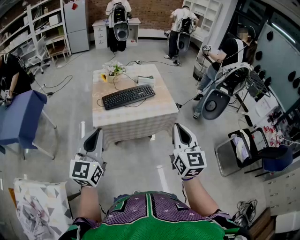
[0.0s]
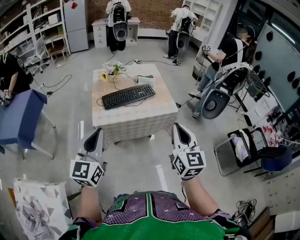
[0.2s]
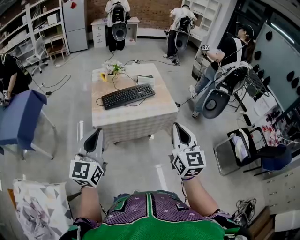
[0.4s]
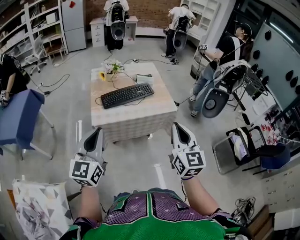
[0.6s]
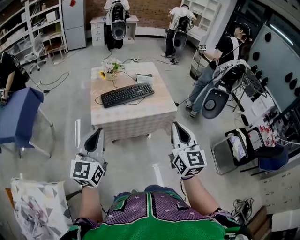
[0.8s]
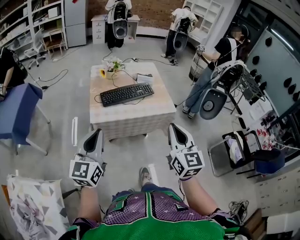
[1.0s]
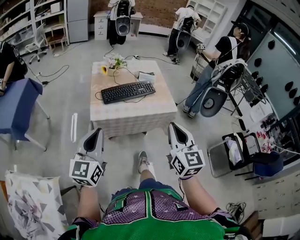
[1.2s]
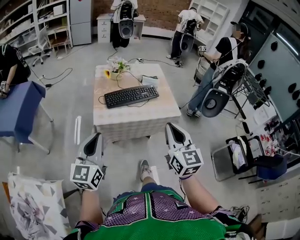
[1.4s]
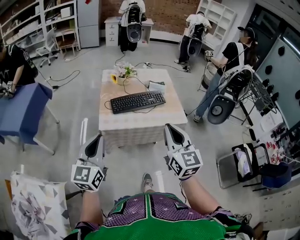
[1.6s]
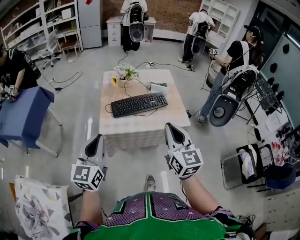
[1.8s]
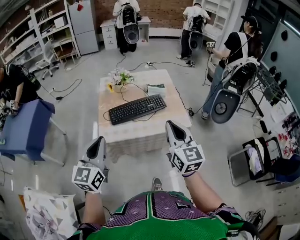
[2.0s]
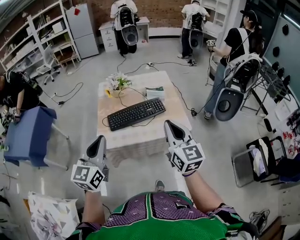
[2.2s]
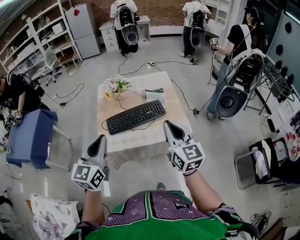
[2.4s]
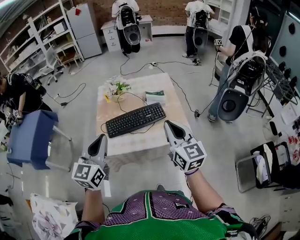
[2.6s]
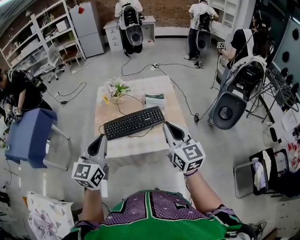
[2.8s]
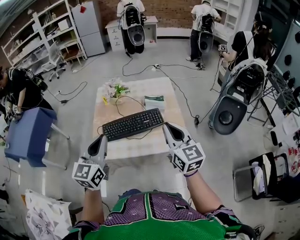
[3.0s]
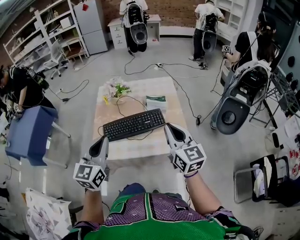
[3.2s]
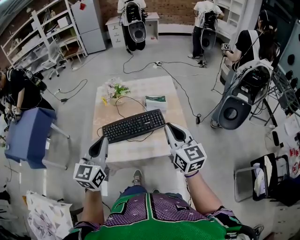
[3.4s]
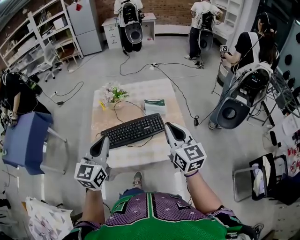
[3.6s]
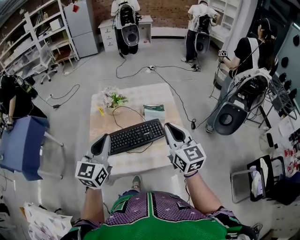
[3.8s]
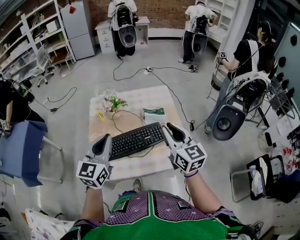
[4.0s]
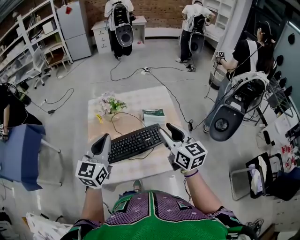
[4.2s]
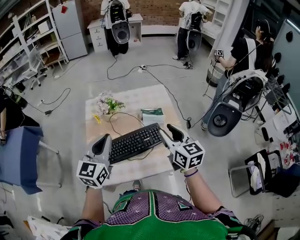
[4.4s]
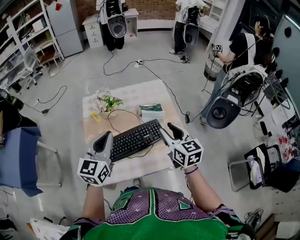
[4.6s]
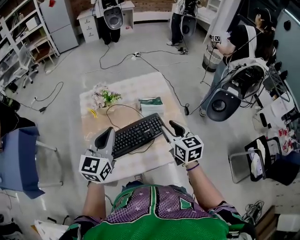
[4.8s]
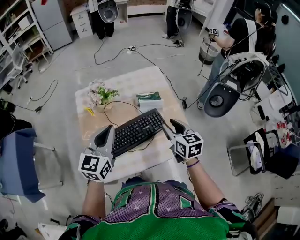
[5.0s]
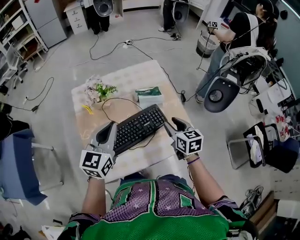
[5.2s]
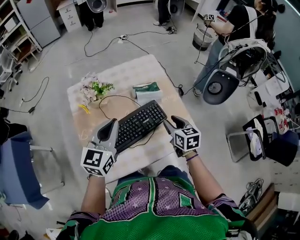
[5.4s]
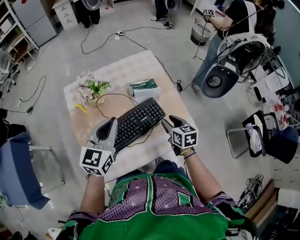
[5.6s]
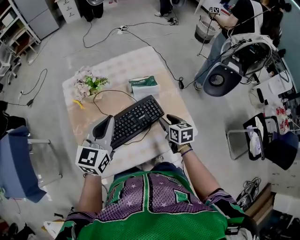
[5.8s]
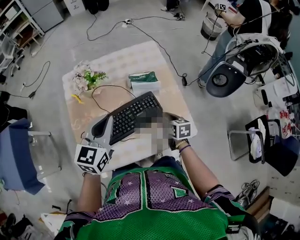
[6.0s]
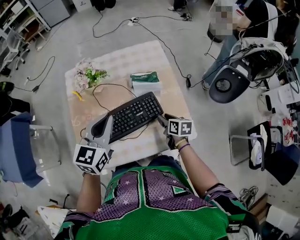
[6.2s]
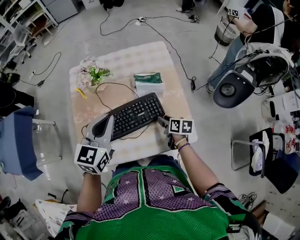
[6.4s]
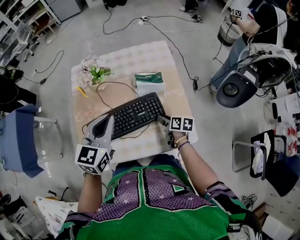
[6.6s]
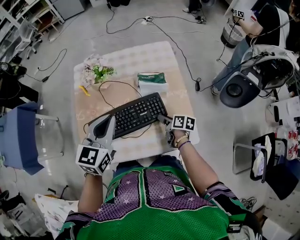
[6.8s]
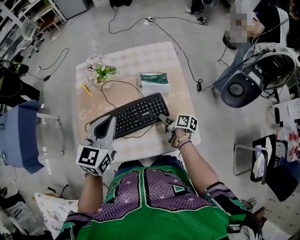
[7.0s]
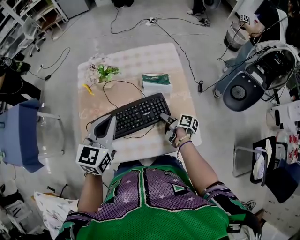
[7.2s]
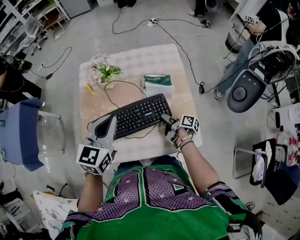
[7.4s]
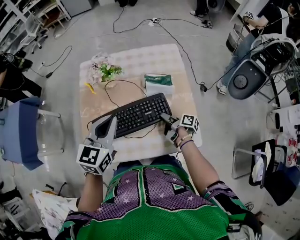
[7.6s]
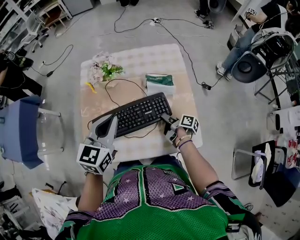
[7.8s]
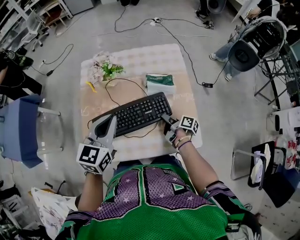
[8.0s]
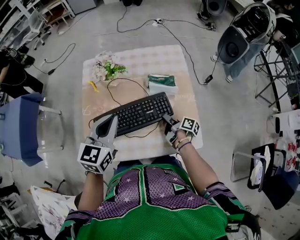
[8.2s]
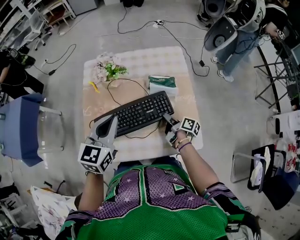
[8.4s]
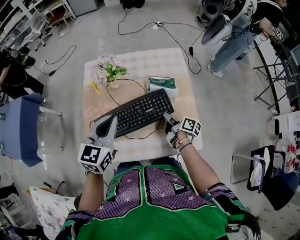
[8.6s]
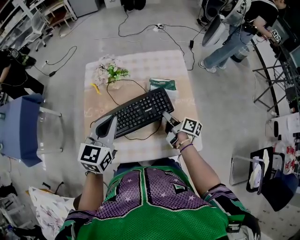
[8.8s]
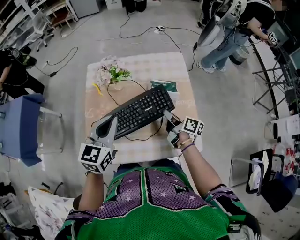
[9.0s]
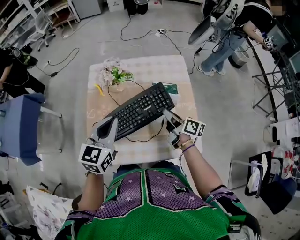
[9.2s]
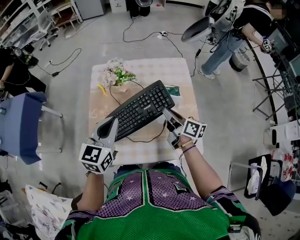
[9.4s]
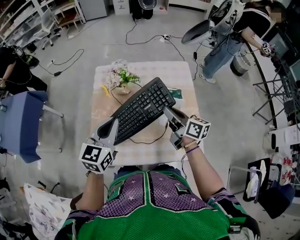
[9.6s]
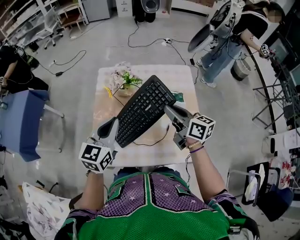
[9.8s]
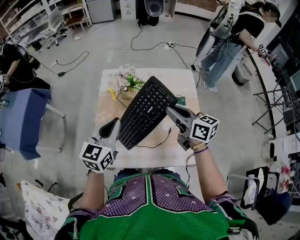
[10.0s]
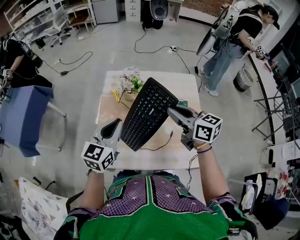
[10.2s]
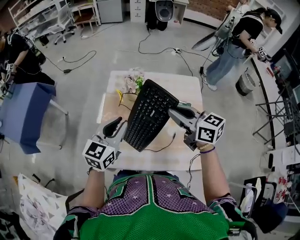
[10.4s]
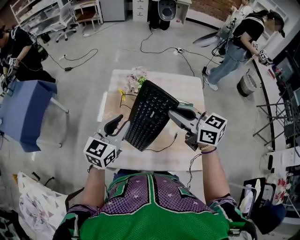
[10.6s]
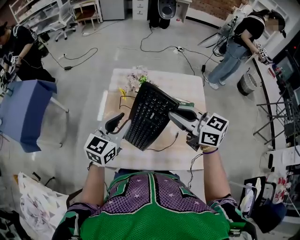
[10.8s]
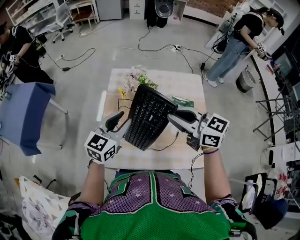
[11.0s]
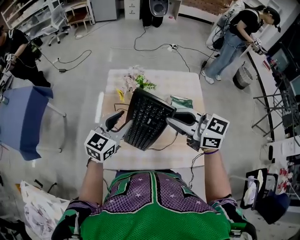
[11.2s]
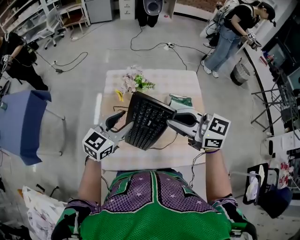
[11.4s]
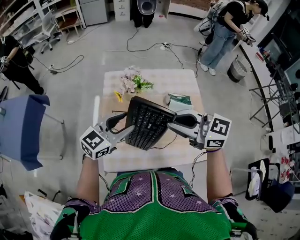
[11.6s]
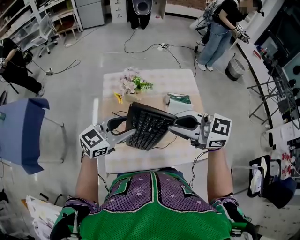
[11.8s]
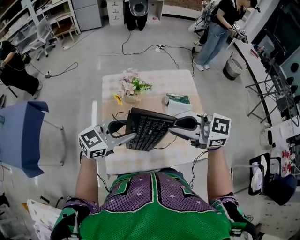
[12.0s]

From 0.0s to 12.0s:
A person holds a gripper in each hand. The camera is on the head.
From 0.0s to 1.6s: The right gripper travels to the left and forward by approximately 10 cm; the left gripper shifts by about 5 cm.
From 1.6s to 3.0s: The grippers both shift forward and to the right by some 30 cm.
From 3.0s to 4.4s: Both grippers move forward, approximately 15 cm. The right gripper opens up.
From 4.4s to 6.0s: The left gripper heads downward and forward, covering some 15 cm. Meanwhile the right gripper moves downward, about 30 cm, and tips its fingers downward by approximately 30 degrees.
From 6.0s to 7.6s: The right gripper heads downward, covering roughly 5 cm, and twists approximately 50 degrees clockwise, seen from behind.
From 7.6s to 9.0s: The right gripper heads upward, covering about 10 cm, turns by roughly 30 degrees, and closes its fingers.
From 9.0s to 10.4s: The left gripper travels to the left by approximately 5 cm; the right gripper heads upward and to the left, covering some 25 cm, and rolls counterclockwise, seen from behind, by approximately 50 degrees.
From 10.4s to 12.0s: The left gripper changes its angle by some 40 degrees, and opens up. The right gripper ends up some 10 cm from where it was, and rotates approximately 20 degrees.

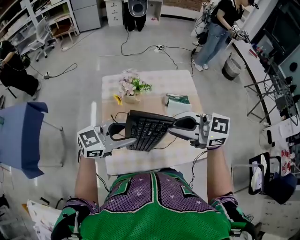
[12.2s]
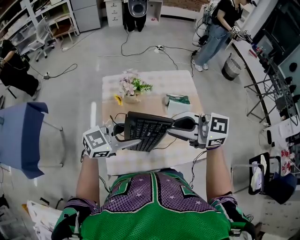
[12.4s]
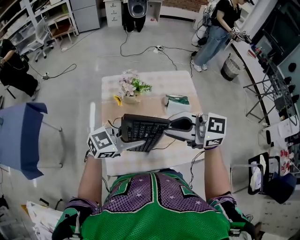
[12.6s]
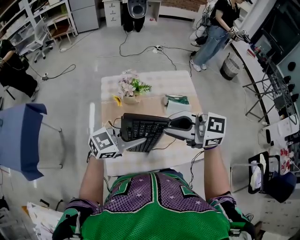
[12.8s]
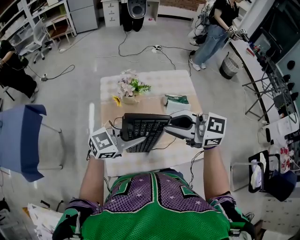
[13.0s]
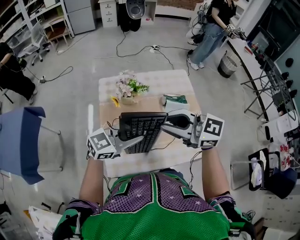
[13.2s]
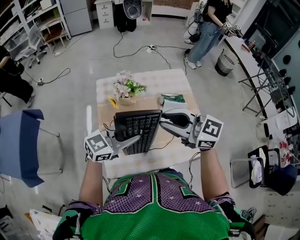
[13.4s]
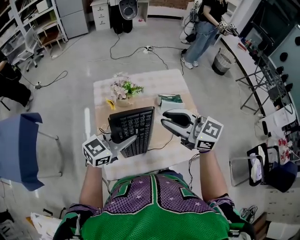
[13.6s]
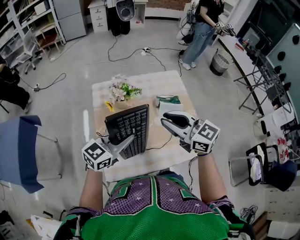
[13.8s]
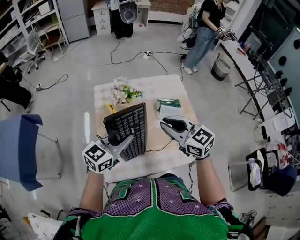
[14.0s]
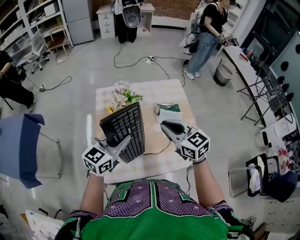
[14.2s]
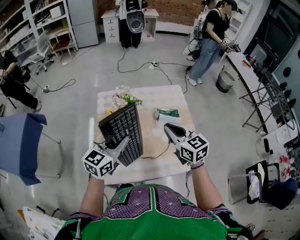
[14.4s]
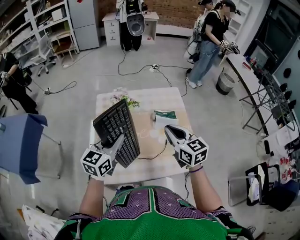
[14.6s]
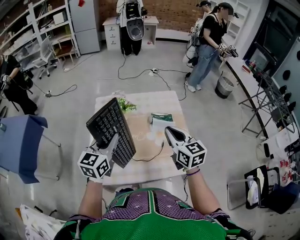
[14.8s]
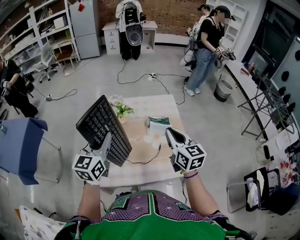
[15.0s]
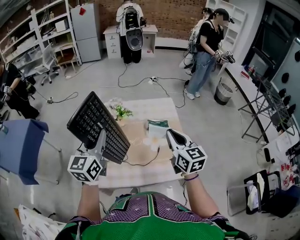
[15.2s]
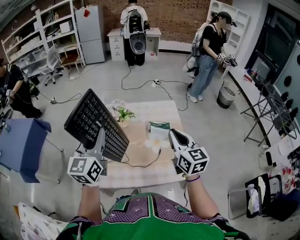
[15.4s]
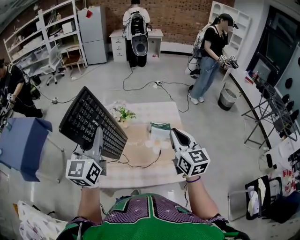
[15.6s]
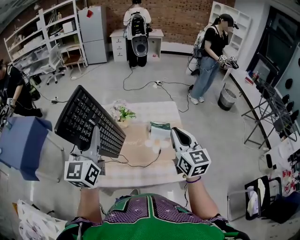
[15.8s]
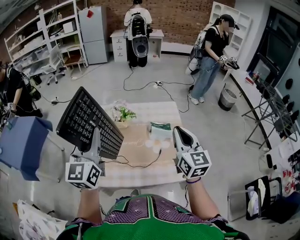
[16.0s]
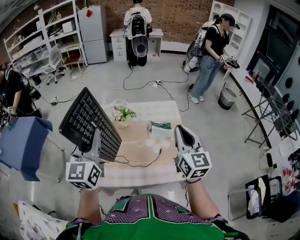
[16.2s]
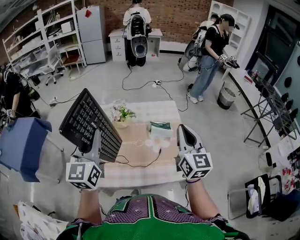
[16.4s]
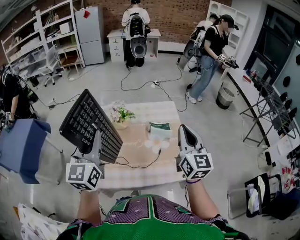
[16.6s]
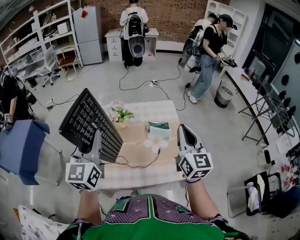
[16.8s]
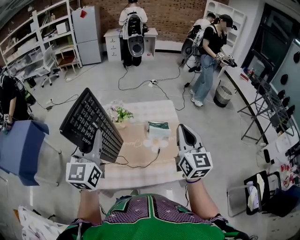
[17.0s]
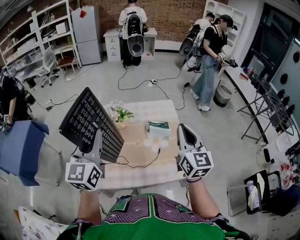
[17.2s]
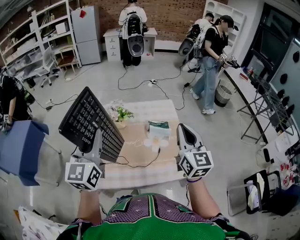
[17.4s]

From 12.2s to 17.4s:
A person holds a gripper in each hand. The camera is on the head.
From 12.2s to 14.0s: The right gripper heads downward, covering some 5 cm, and swivels approximately 30 degrees. Meanwhile the left gripper closes its fingers.
From 14.0s to 15.6s: The left gripper moves upward, roughly 20 cm, and rotates roughly 50 degrees, while the right gripper shifts some 15 cm to the right and upward, and swivels approximately 30 degrees.
From 15.6s to 17.4s: The grippers move only a little.

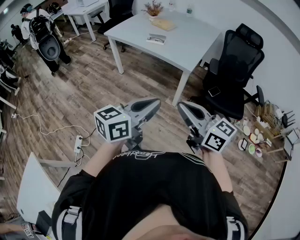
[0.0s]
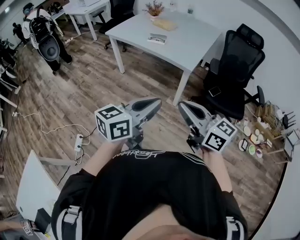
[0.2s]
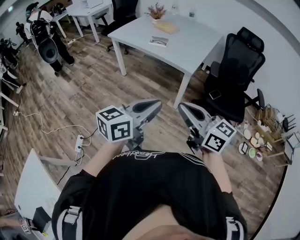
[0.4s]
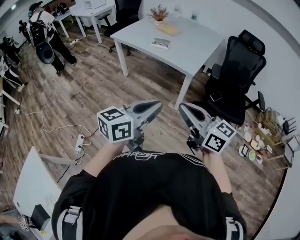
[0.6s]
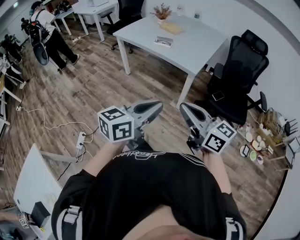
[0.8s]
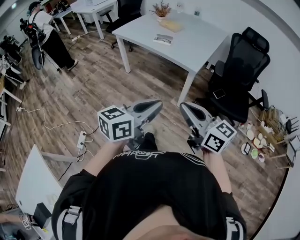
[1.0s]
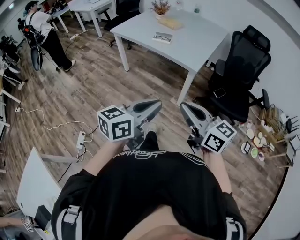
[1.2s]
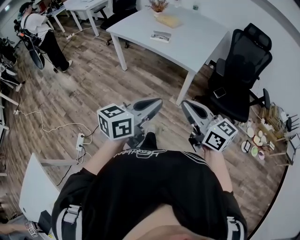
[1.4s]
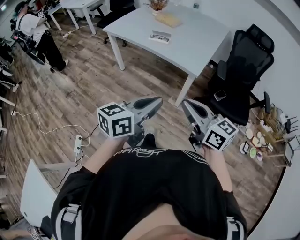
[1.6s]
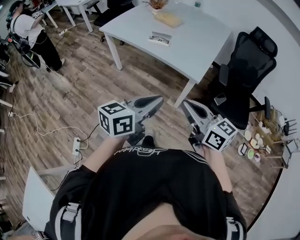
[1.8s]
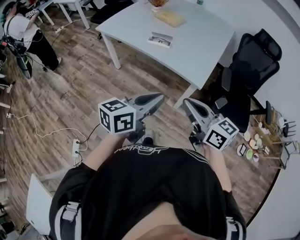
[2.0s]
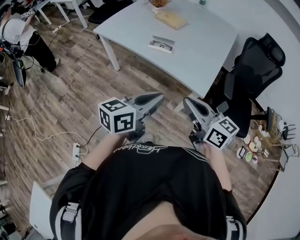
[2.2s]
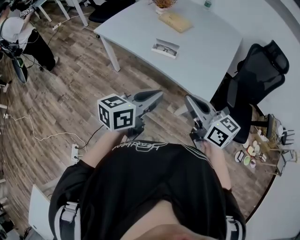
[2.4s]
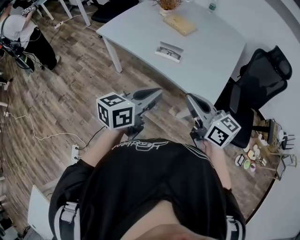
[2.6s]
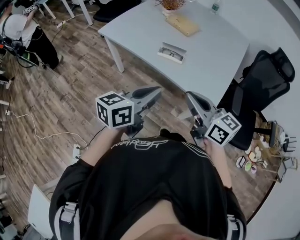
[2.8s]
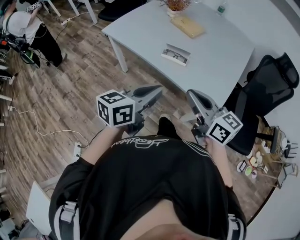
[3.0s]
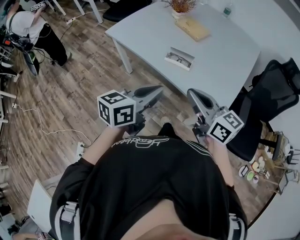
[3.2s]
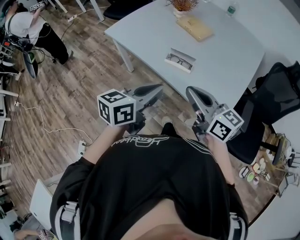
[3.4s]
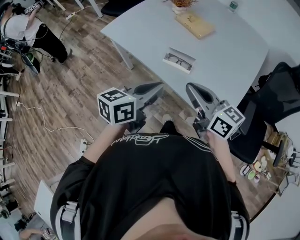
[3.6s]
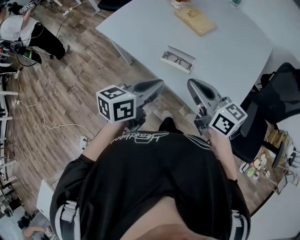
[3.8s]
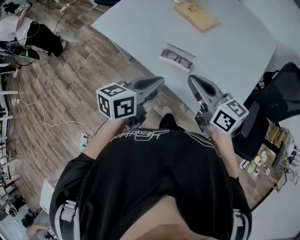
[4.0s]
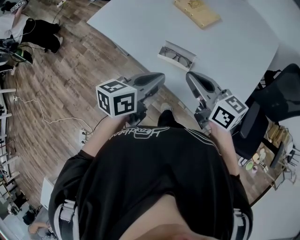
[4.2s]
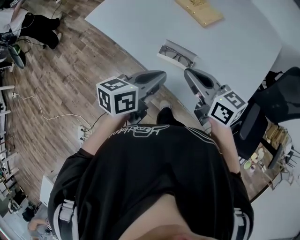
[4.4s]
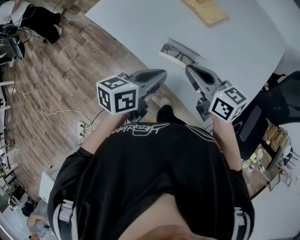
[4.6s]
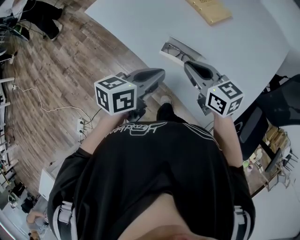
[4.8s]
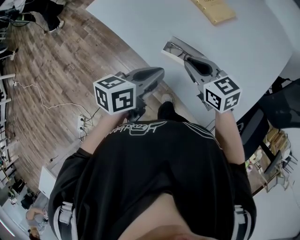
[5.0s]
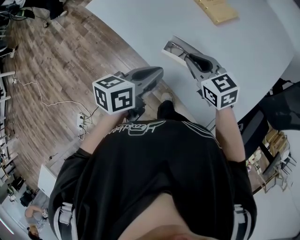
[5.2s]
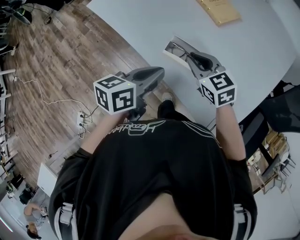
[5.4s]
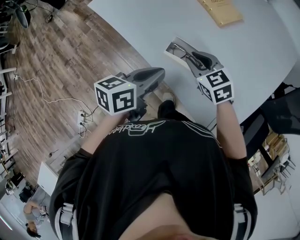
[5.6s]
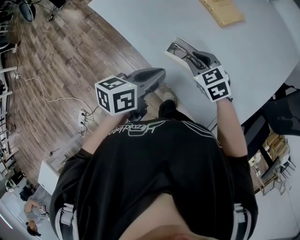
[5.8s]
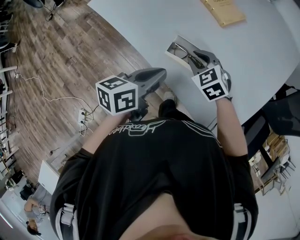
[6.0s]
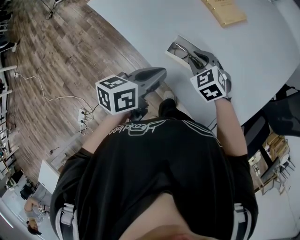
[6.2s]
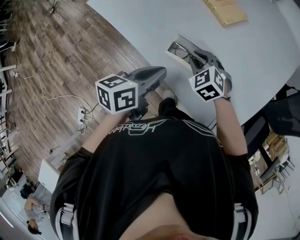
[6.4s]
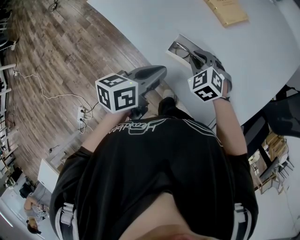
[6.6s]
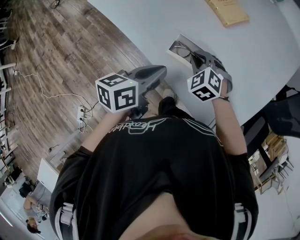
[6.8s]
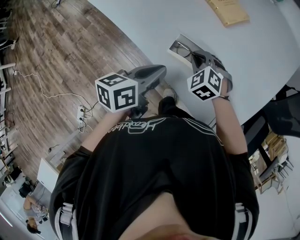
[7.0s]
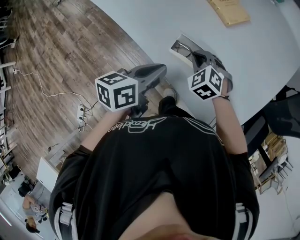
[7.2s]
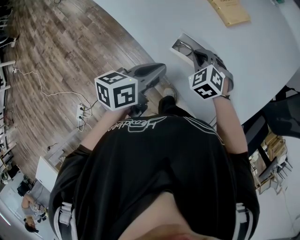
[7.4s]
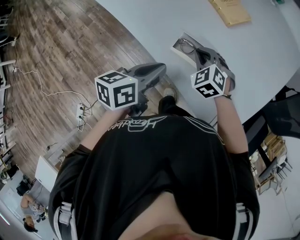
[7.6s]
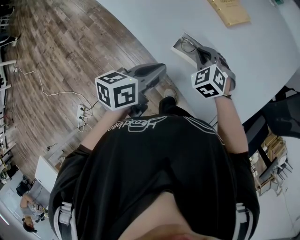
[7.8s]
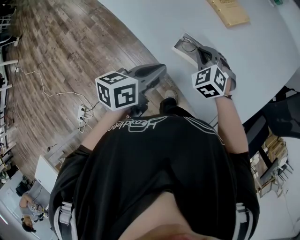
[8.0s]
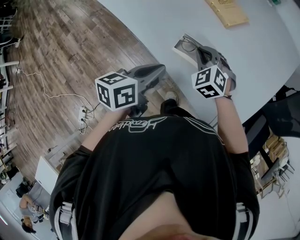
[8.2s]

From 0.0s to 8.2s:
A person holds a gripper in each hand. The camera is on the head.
From 0.0s to 1.6s: Both grippers travel together forward, roughly 10 cm.
From 1.6s to 3.2s: The two grippers go roughly 40 cm forward.
From 3.2s to 5.0s: The grippers both shift forward and downward by roughly 25 cm. The right gripper rotates about 30 degrees.
From 5.0s to 6.6s: The right gripper heads downward, covering approximately 10 cm, and swivels roughly 50 degrees.
From 6.6s to 8.2s: The grippers make only small movements.
